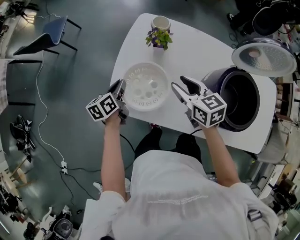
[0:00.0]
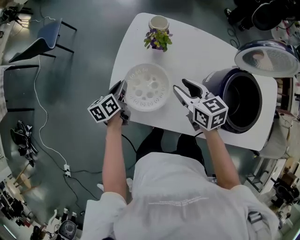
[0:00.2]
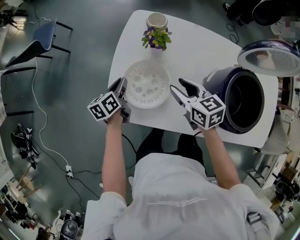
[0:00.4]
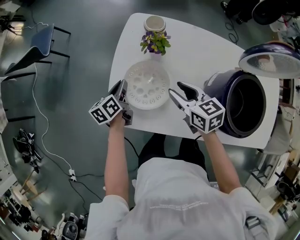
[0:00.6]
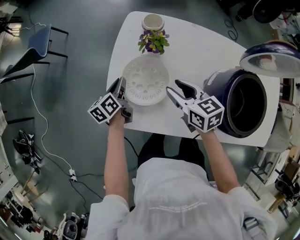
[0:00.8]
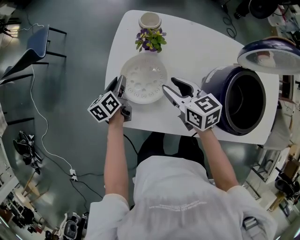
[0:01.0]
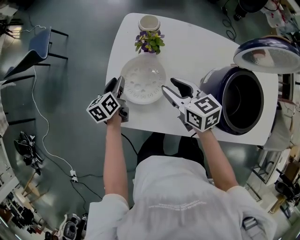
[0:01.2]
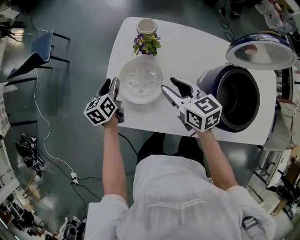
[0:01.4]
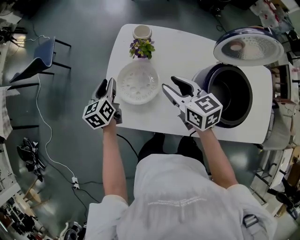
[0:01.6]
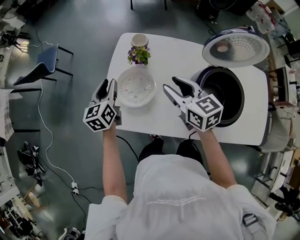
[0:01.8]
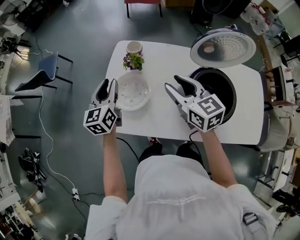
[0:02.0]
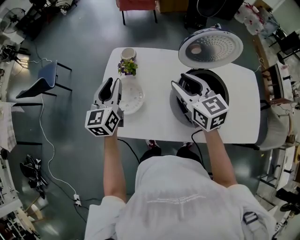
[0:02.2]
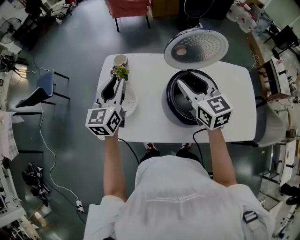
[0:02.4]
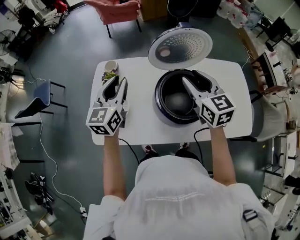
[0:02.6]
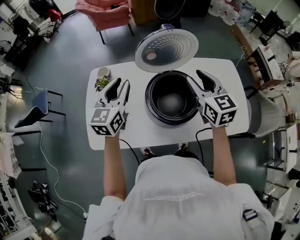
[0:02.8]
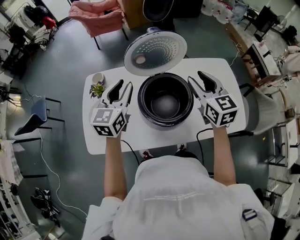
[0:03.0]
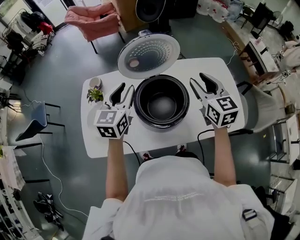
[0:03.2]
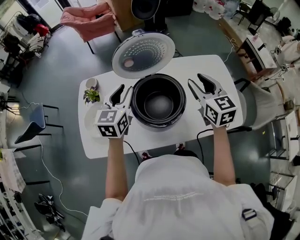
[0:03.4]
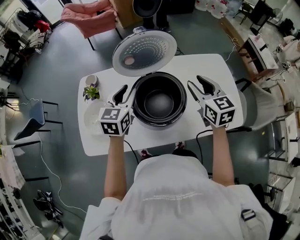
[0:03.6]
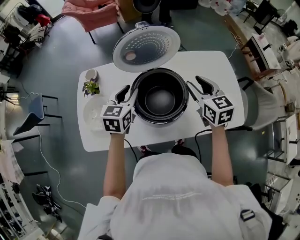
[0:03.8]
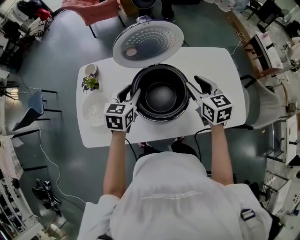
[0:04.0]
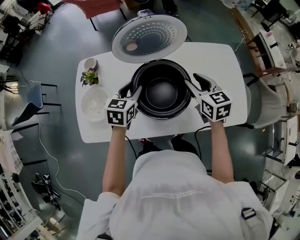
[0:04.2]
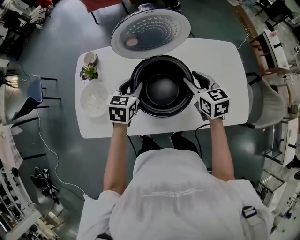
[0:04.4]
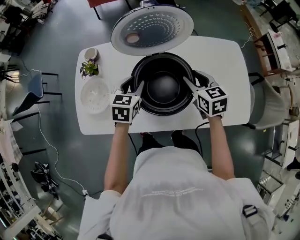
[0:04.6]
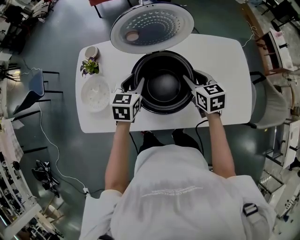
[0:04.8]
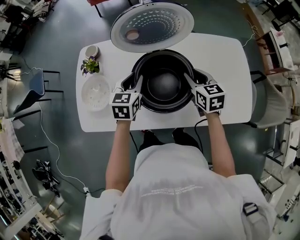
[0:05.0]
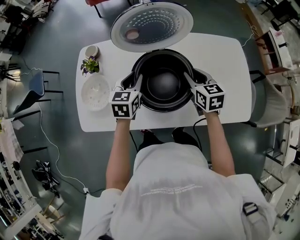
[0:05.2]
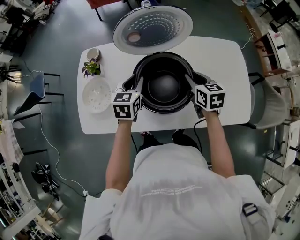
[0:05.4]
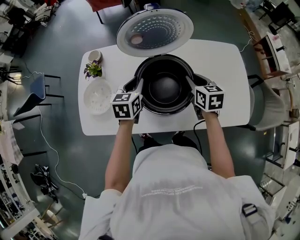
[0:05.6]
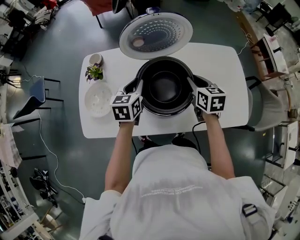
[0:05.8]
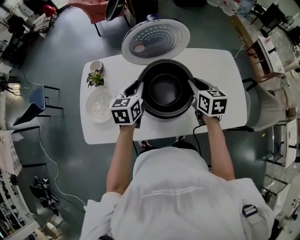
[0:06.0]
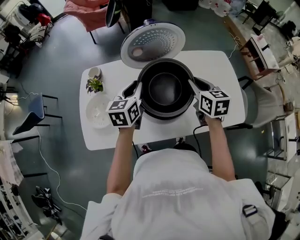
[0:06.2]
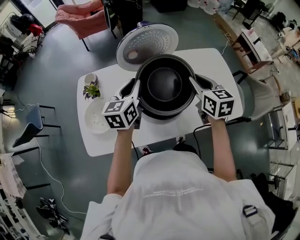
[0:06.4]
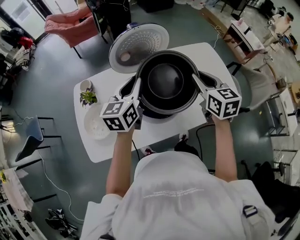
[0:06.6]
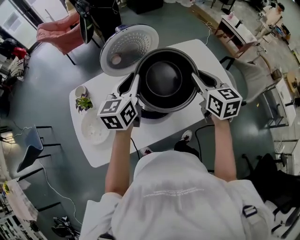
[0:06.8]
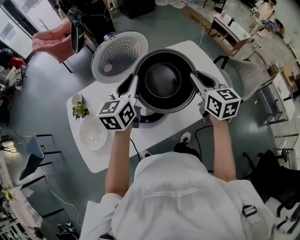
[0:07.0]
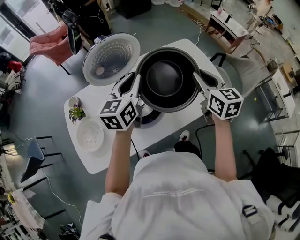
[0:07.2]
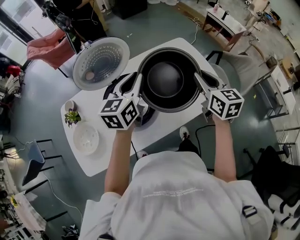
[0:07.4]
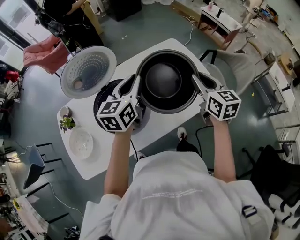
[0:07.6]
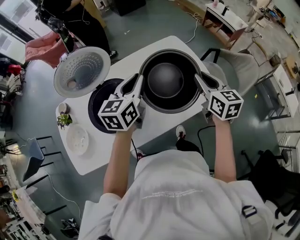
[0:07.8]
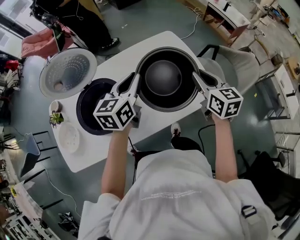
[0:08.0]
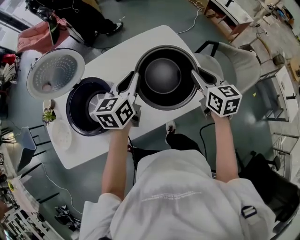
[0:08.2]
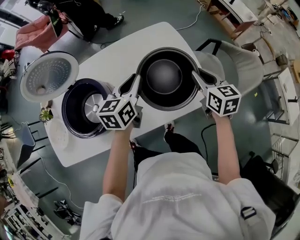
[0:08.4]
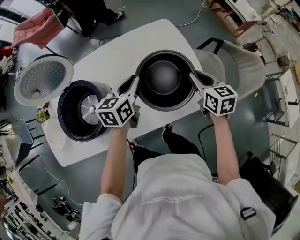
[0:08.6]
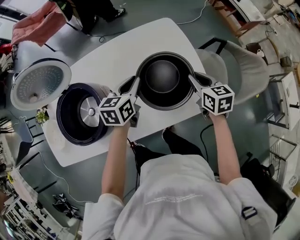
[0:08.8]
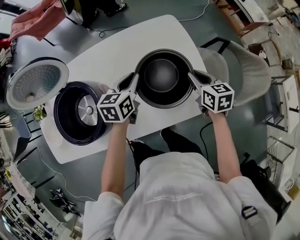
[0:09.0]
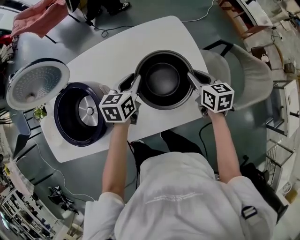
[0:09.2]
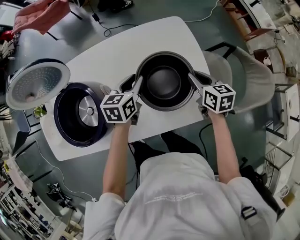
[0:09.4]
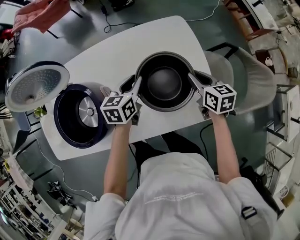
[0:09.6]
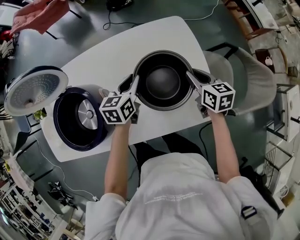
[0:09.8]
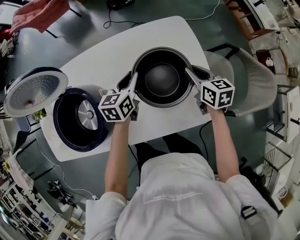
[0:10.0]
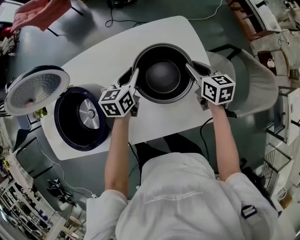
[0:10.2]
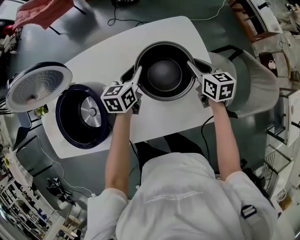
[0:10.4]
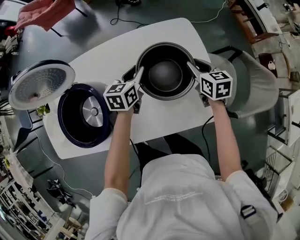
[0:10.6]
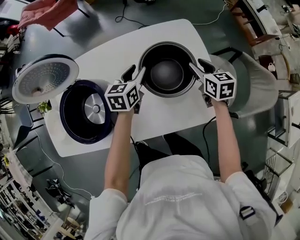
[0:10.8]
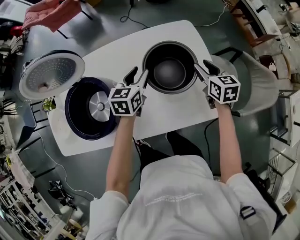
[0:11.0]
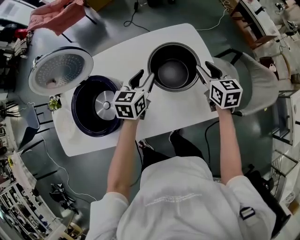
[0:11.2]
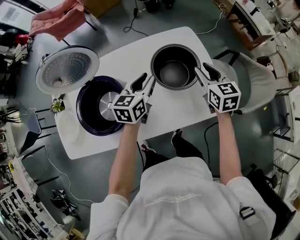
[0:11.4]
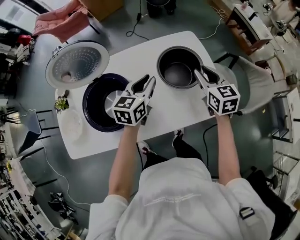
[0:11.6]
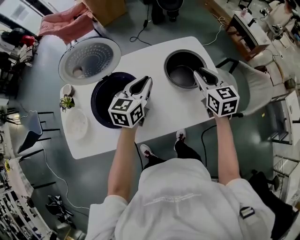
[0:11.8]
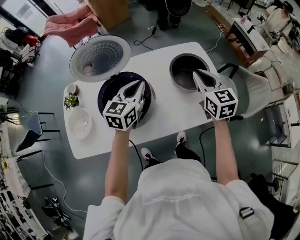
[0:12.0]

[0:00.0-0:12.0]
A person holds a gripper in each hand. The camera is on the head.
0:00.0 to 0:01.6: The left gripper heads forward and upward, covering approximately 10 cm, swivels about 20 degrees, and opens its fingers.
0:01.6 to 0:03.0: The right gripper shifts by approximately 40 cm, and rotates some 40 degrees, while the left gripper changes place by roughly 40 cm, and turns by roughly 40 degrees.
0:03.0 to 0:04.4: Both grippers travel together downward, about 15 cm. The left gripper rotates approximately 30 degrees.
0:04.4 to 0:06.0: The right gripper closes.
0:06.0 to 0:07.6: The left gripper moves to the right and upward, some 25 cm, and swivels about 30 degrees, while the right gripper is displaced to the right by some 25 cm, and rotates about 30 degrees.
0:07.6 to 0:09.0: The left gripper goes some 25 cm downward, to the right and forward, and changes its angle by some 20 degrees, while the right gripper shifts roughly 30 cm downward, forward and to the right, and rotates some 30 degrees.
0:09.0 to 0:10.4: The two grippers go roughly 10 cm forward.
0:10.4 to 0:12.0: The two grippers go about 30 cm upward, backward and to the left. The right gripper swivels approximately 30 degrees, and opens, then closes once more. The left gripper rotates roughly 20 degrees.

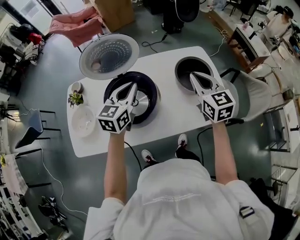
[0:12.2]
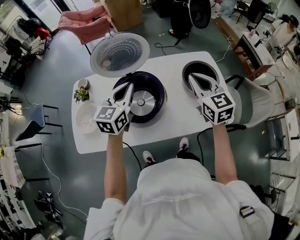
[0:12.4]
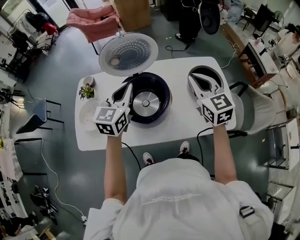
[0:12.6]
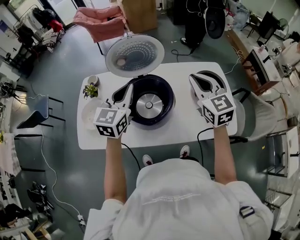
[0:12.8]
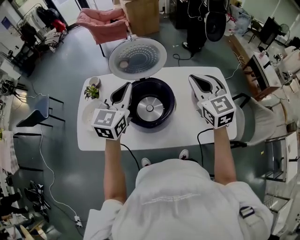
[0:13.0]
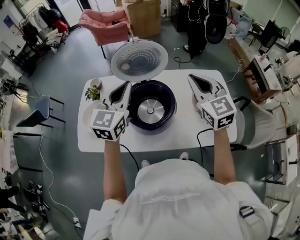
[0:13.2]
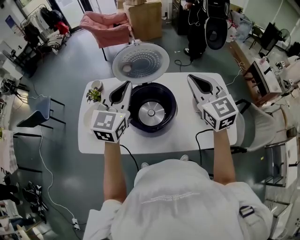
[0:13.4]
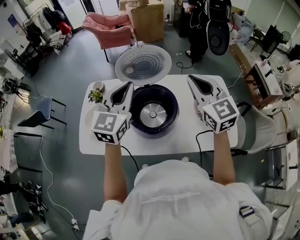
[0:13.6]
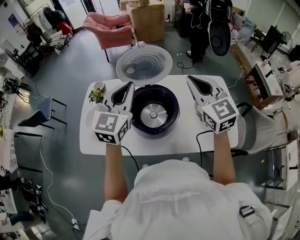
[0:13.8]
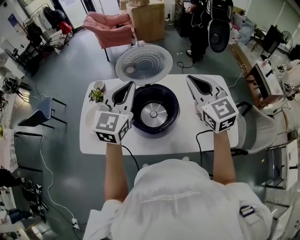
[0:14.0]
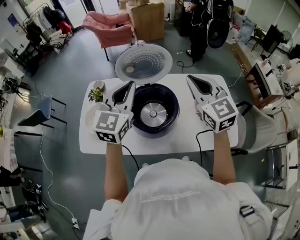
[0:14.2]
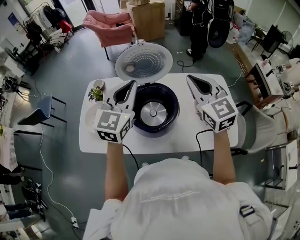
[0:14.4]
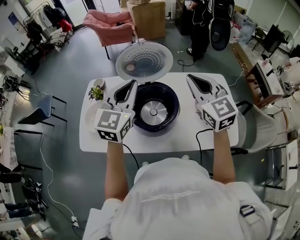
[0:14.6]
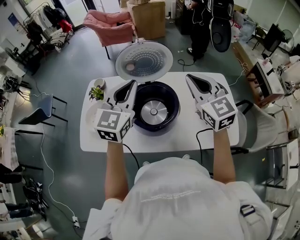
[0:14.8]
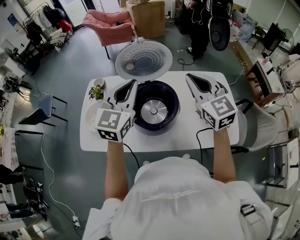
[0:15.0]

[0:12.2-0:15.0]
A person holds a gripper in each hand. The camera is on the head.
0:12.2 to 0:13.6: The right gripper goes some 15 cm to the left and upward, and rotates some 20 degrees. Meanwhile the left gripper goes some 15 cm upward and to the left, and turns by approximately 20 degrees.
0:13.6 to 0:15.0: The grippers stay close to where they were, moving slightly.

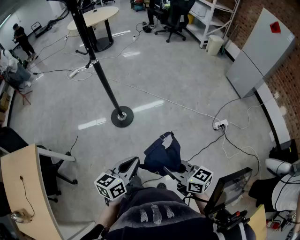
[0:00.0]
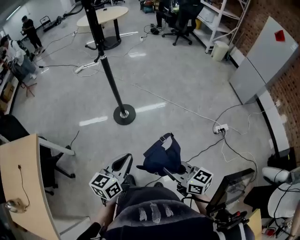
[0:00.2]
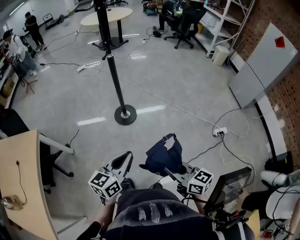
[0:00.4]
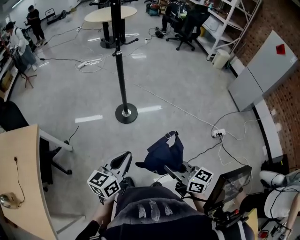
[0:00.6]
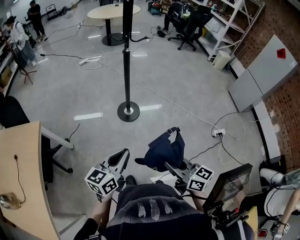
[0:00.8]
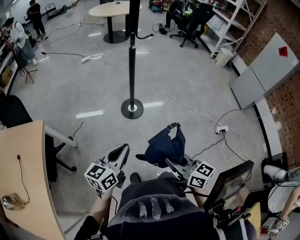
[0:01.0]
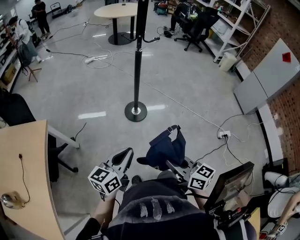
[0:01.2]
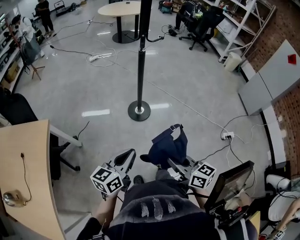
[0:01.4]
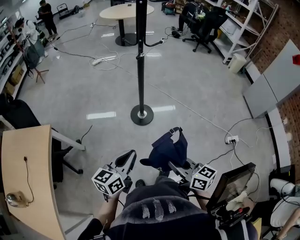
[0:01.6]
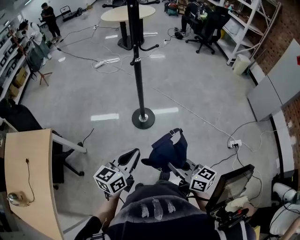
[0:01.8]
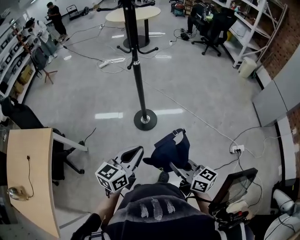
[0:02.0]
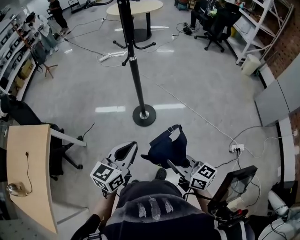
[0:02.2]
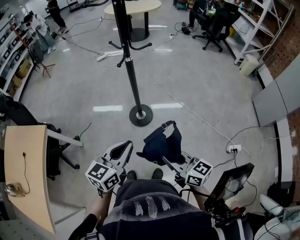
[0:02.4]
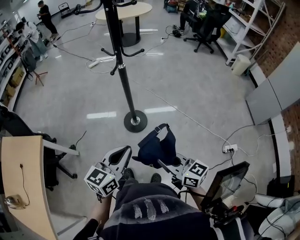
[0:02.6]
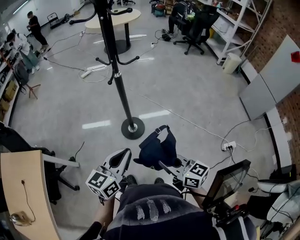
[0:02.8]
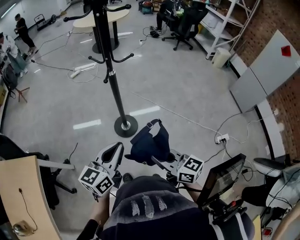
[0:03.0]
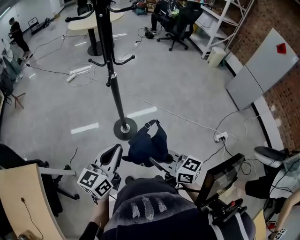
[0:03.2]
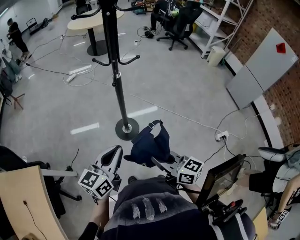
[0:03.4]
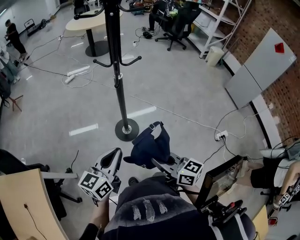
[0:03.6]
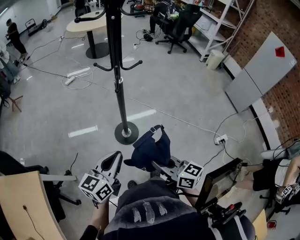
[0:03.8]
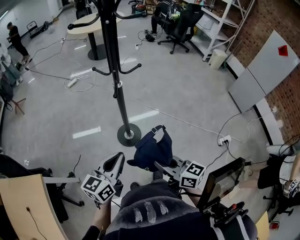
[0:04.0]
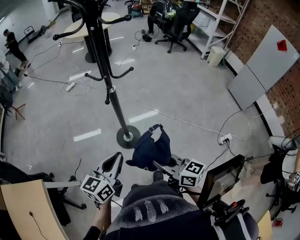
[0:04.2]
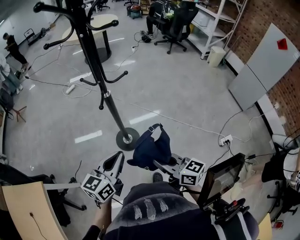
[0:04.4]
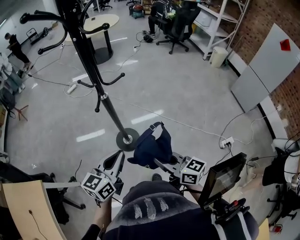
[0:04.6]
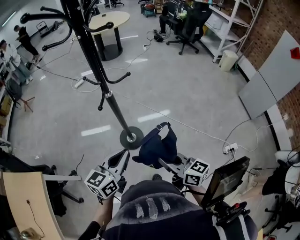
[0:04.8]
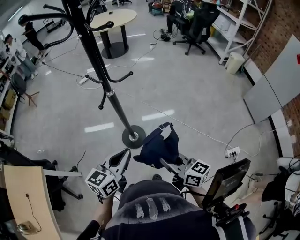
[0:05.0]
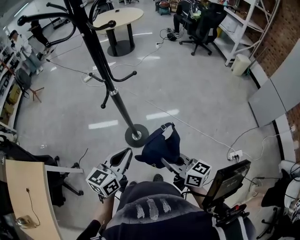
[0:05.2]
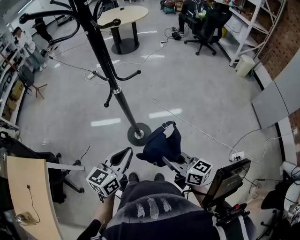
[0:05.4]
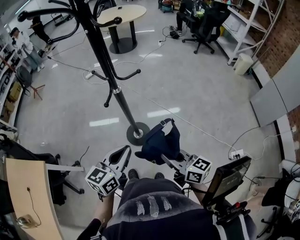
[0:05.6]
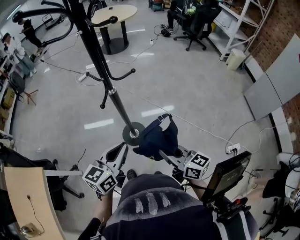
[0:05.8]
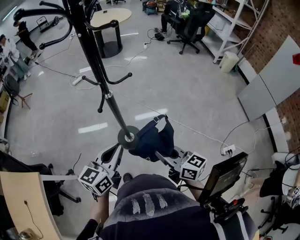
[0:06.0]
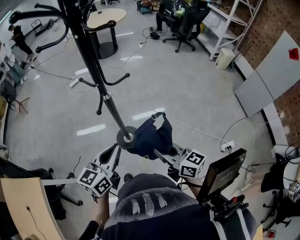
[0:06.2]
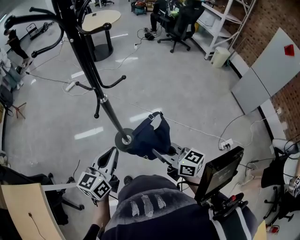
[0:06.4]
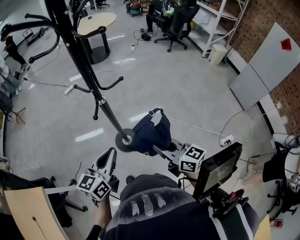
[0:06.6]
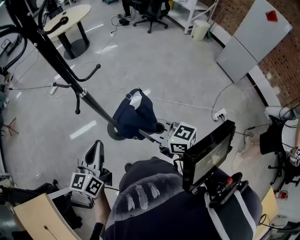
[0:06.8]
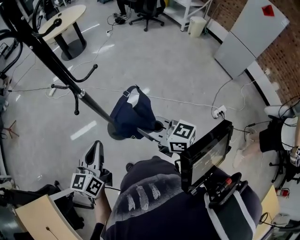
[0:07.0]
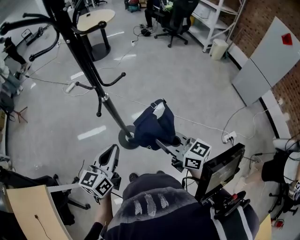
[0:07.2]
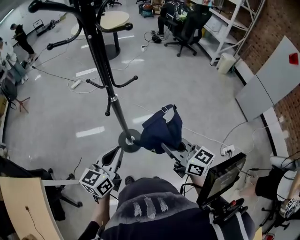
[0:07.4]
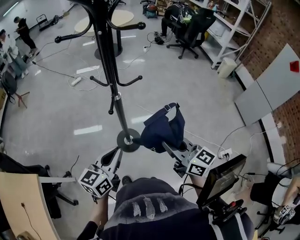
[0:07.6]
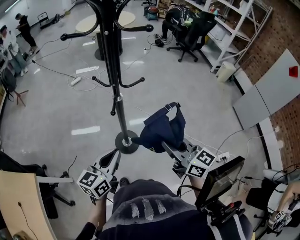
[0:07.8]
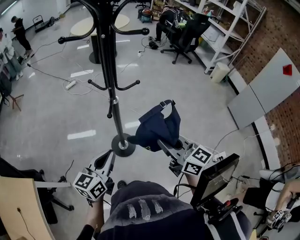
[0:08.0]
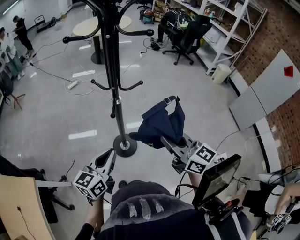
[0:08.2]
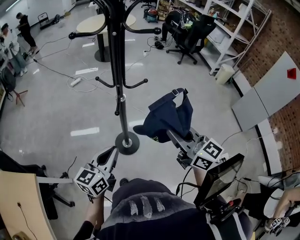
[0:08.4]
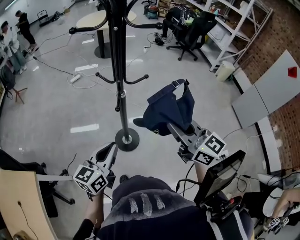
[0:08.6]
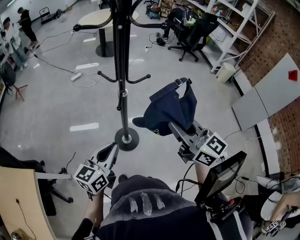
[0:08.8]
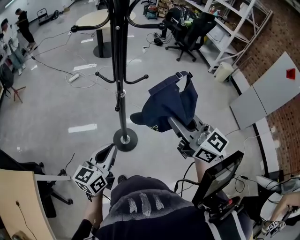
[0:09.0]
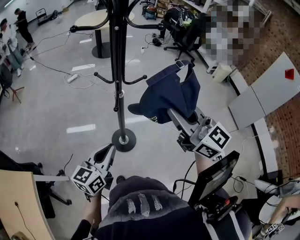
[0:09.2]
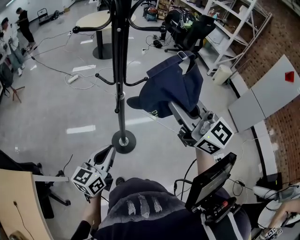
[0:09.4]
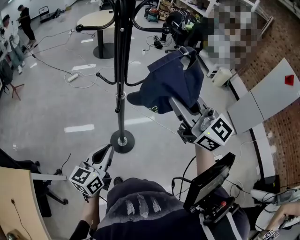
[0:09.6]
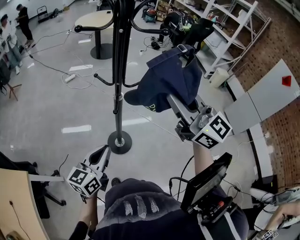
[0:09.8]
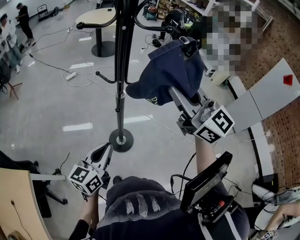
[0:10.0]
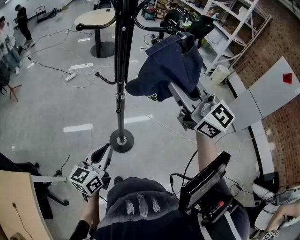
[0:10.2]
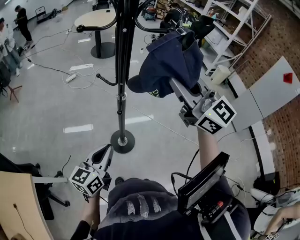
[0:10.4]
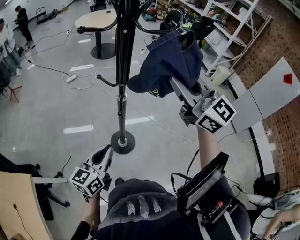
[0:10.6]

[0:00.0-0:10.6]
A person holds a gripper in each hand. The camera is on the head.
0:00.0 to 0:01.6: Both grippers travel together to the left, roughly 20 cm.
0:01.6 to 0:03.0: The right gripper shifts roughly 15 cm forward. Meanwhile the left gripper shifts roughly 20 cm forward, to the right and upward.
0:03.0 to 0:04.6: Both grippers travel together forward, some 10 cm. The left gripper reaches roughly 5 cm to the left, then returns.
0:04.6 to 0:06.0: Both grippers travel together forward, some 5 cm.
0:06.0 to 0:07.6: The right gripper goes some 10 cm upward and forward; the left gripper moves to the left, some 5 cm.
0:07.6 to 0:09.0: The right gripper travels upward by about 10 cm.
0:09.0 to 0:10.6: The right gripper goes approximately 15 cm upward and forward.
